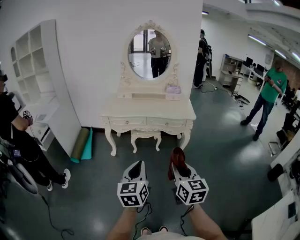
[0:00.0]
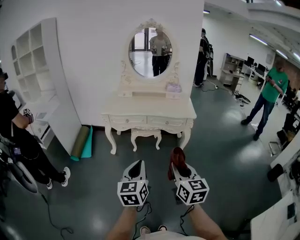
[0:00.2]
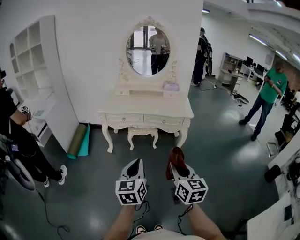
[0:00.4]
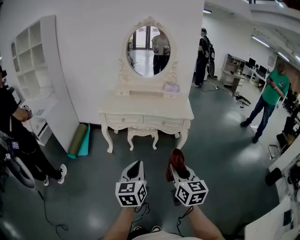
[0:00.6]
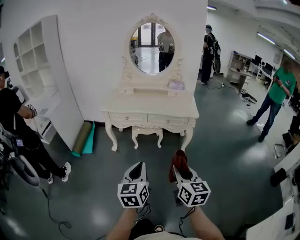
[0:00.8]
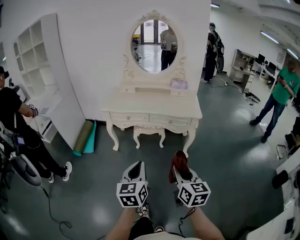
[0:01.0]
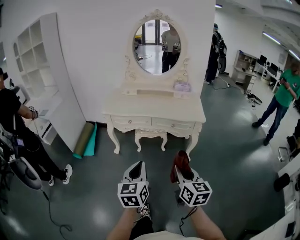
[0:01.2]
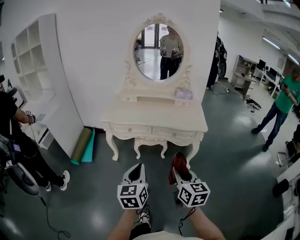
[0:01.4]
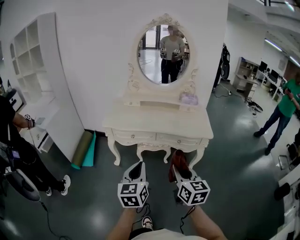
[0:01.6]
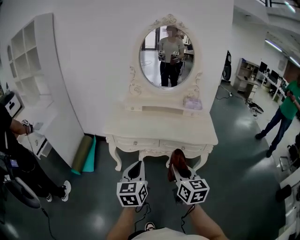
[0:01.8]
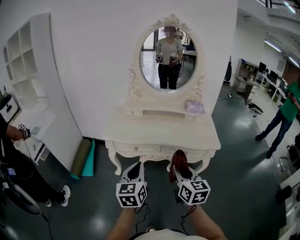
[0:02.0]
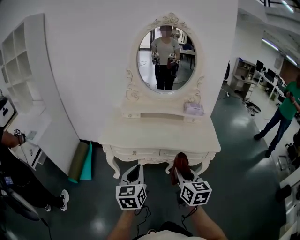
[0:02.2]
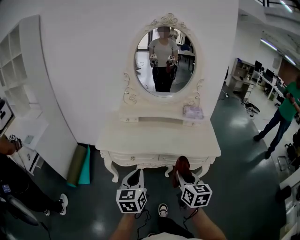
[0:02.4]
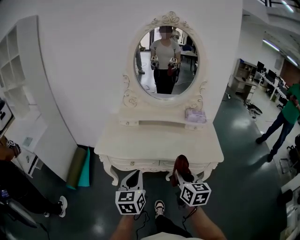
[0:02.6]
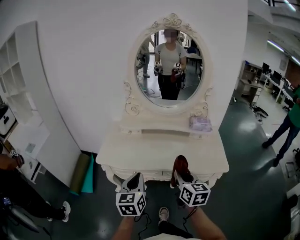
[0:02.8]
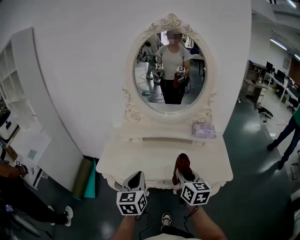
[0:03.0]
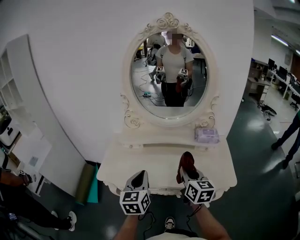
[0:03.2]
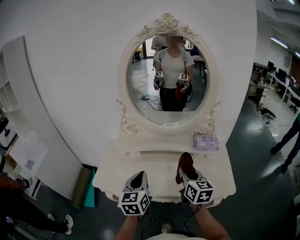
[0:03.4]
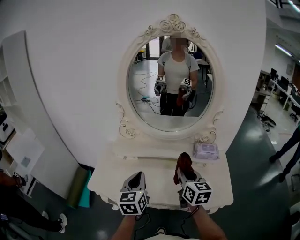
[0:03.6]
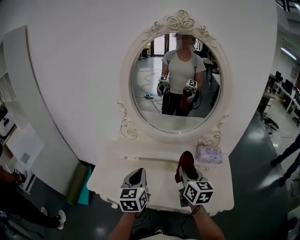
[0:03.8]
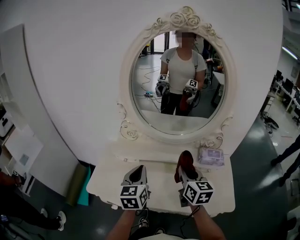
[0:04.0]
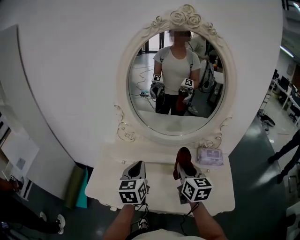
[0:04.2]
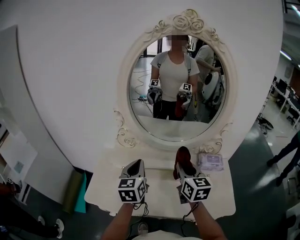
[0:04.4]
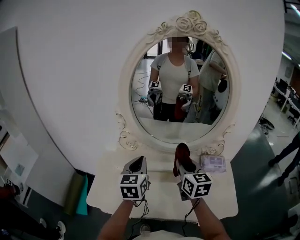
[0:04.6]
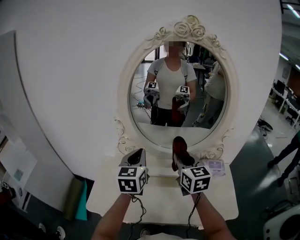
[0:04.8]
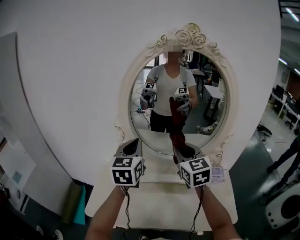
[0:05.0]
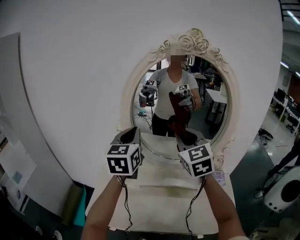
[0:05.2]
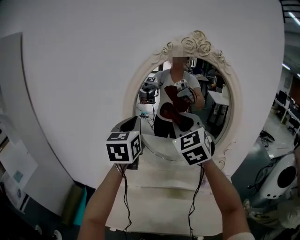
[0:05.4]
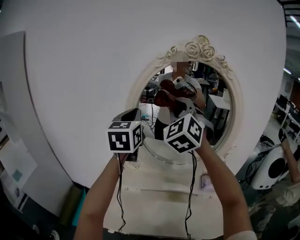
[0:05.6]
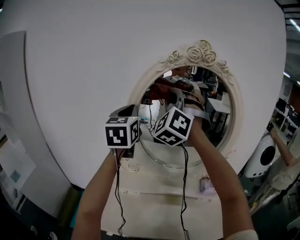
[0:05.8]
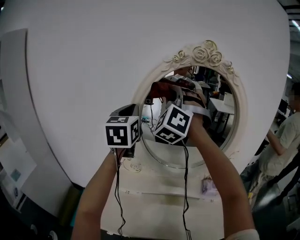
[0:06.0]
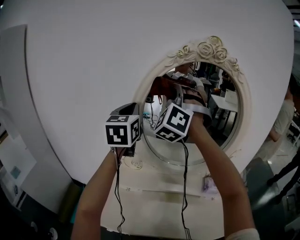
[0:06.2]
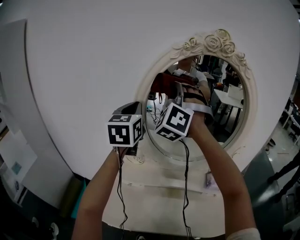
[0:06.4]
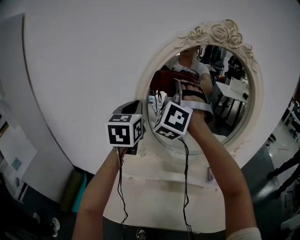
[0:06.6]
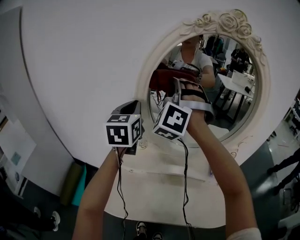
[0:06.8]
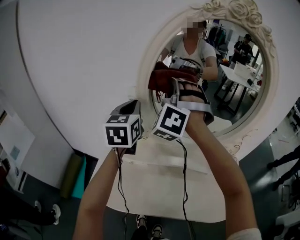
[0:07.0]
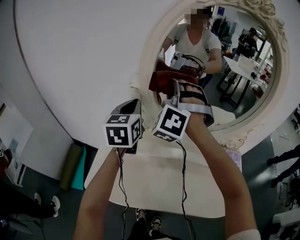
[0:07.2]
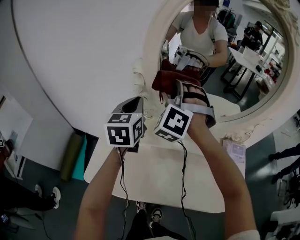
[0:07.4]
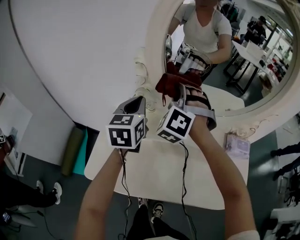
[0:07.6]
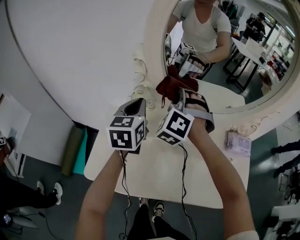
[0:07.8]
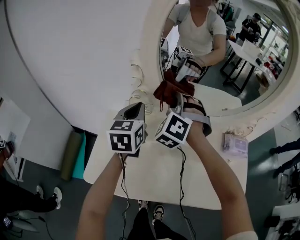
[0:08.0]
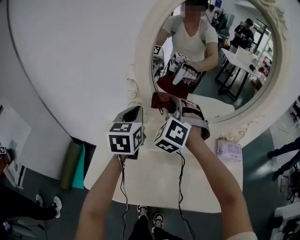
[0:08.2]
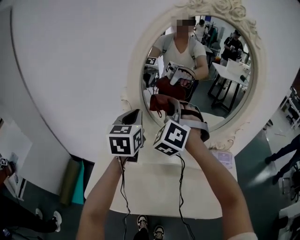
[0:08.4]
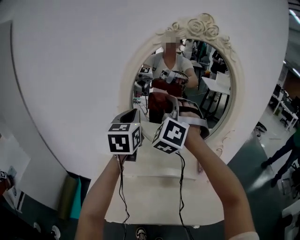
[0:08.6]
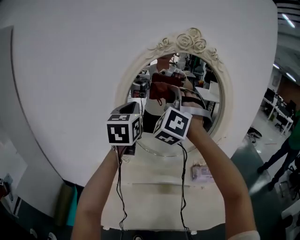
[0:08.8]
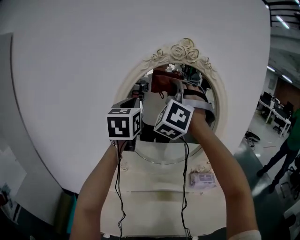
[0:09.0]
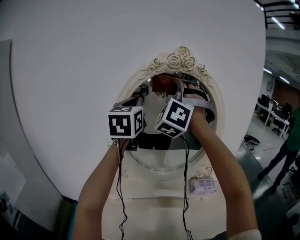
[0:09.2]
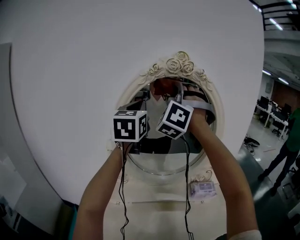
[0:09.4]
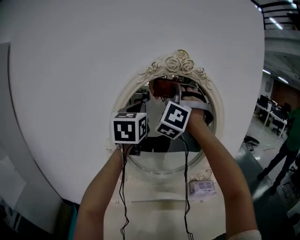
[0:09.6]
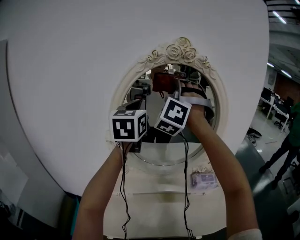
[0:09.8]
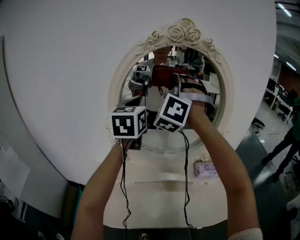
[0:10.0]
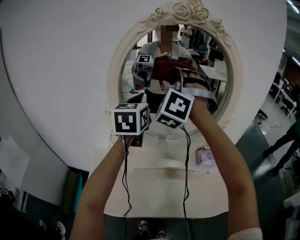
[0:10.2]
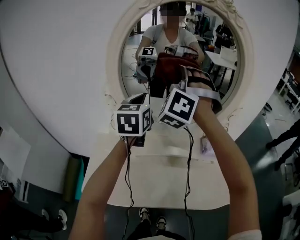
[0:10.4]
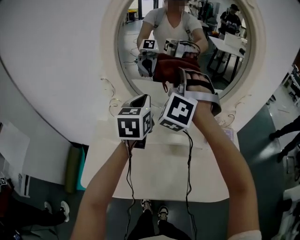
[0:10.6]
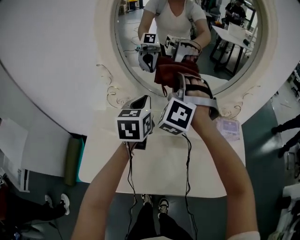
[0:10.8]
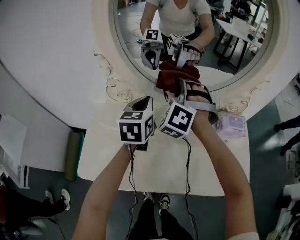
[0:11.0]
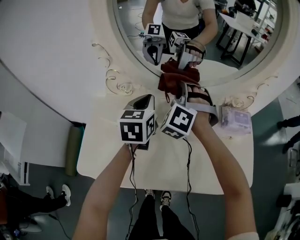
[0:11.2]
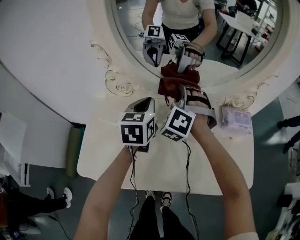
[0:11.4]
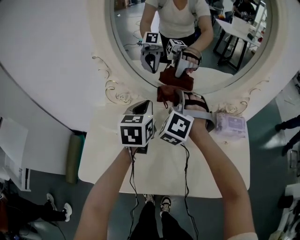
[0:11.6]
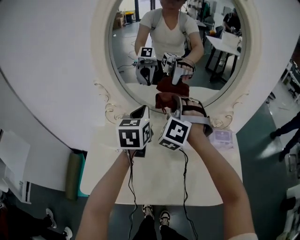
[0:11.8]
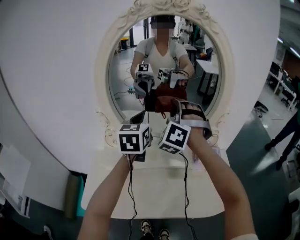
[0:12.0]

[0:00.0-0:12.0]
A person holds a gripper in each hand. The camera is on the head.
0:00.0 to 0:01.6: Both grippers move forward, approximately 25 cm.
0:01.6 to 0:03.0: Both grippers travel together forward, about 35 cm.
0:03.0 to 0:04.4: Both grippers move forward, roughly 25 cm.
0:04.4 to 0:06.0: Both grippers travel together upward and forward, approximately 35 cm. The right gripper rotates around the line of its fingers by about 80 degrees, counterclockwise from behind. Meanwhile the left gripper turns by about 20 degrees.
0:06.0 to 0:07.6: Both grippers travel together downward, about 30 cm. The right gripper turns by some 30 degrees. Meanwhile the left gripper changes its angle by roughly 20 degrees.
0:07.6 to 0:09.0: Both grippers move upward, about 35 cm. The left gripper changes its angle by some 20 degrees. The right gripper turns by roughly 30 degrees.
0:09.0 to 0:10.4: Both grippers move downward, about 20 cm.
0:10.4 to 0:12.0: The right gripper shifts some 5 cm to the right, and goes downward and returns, about 30 cm each way; the left gripper travels downward and back again, approximately 25 cm each way.

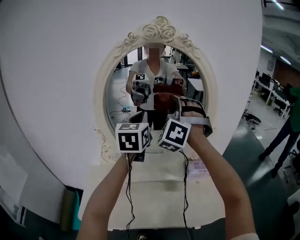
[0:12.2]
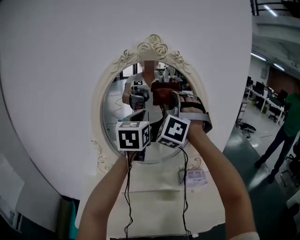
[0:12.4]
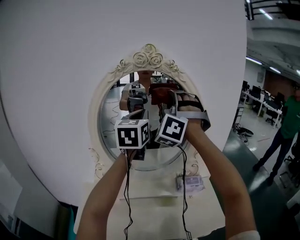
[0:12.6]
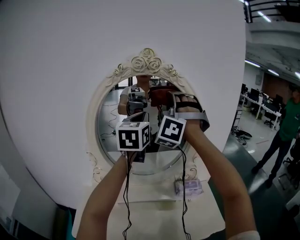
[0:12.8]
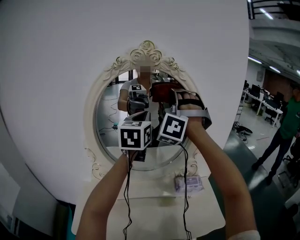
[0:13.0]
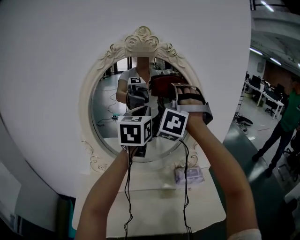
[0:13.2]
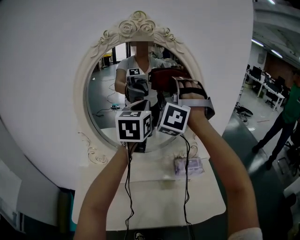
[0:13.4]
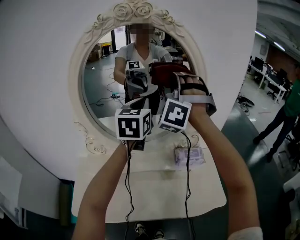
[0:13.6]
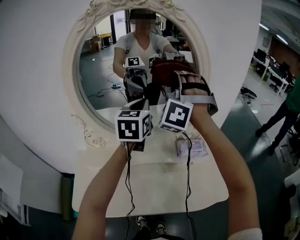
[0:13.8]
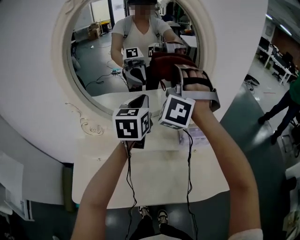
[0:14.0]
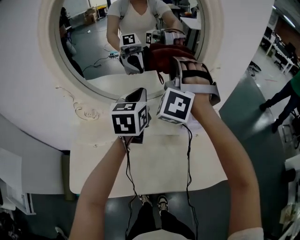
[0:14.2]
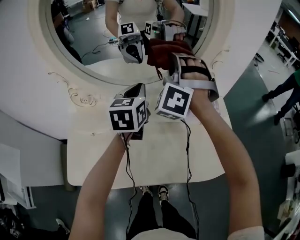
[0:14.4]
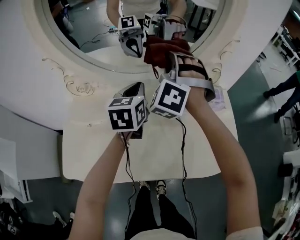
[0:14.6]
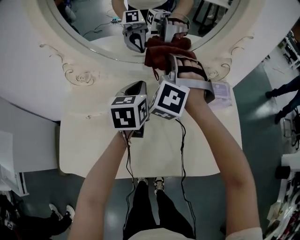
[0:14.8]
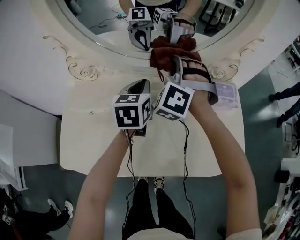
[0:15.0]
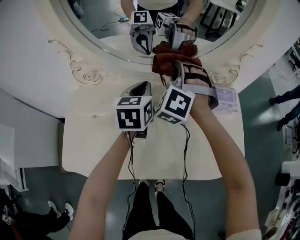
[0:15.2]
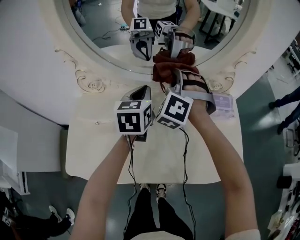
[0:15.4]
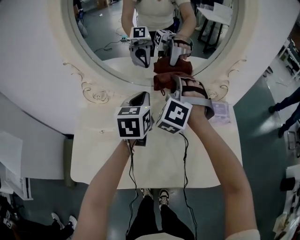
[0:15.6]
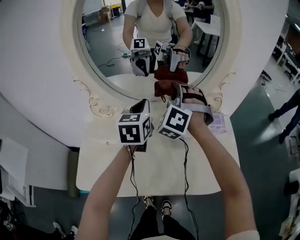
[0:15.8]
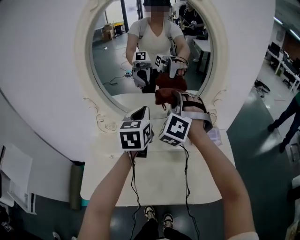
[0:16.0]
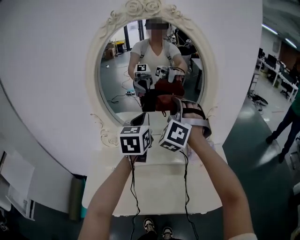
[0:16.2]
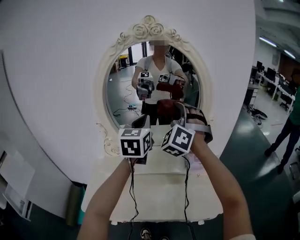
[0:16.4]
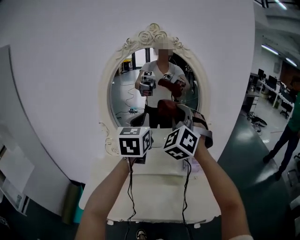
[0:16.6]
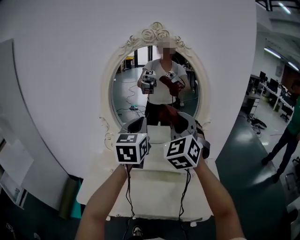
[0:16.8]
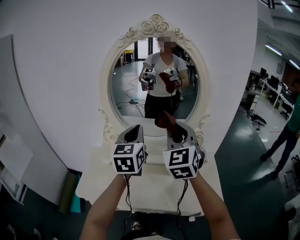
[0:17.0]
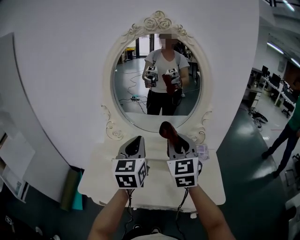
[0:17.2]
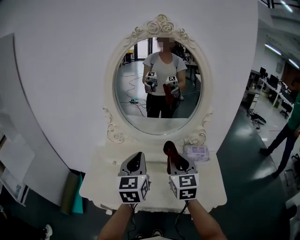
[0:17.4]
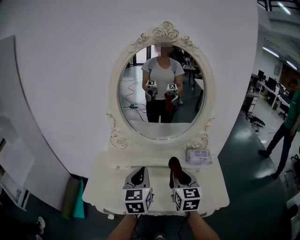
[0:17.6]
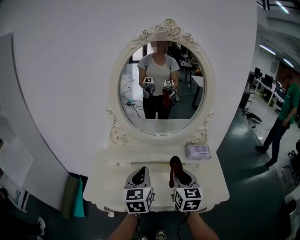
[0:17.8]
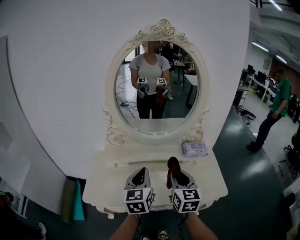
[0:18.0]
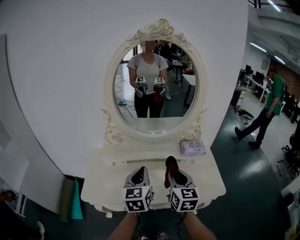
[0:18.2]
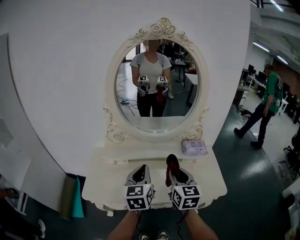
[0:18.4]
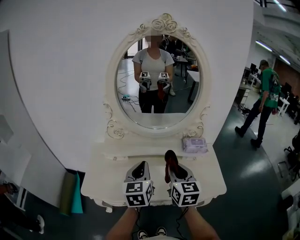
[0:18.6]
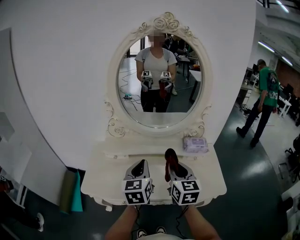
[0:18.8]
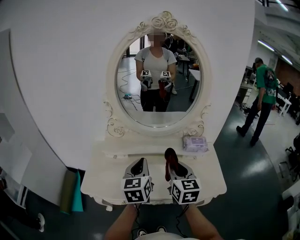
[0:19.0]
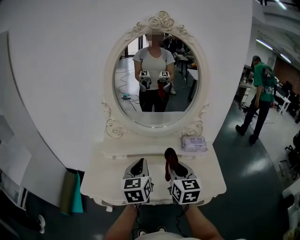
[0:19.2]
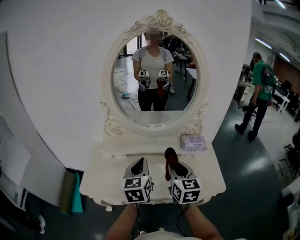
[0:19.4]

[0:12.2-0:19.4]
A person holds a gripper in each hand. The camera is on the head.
0:12.2 to 0:13.6: The left gripper travels forward by roughly 5 cm, and moves some 10 cm upward and comes back. Meanwhile the right gripper is displaced forward and upward by approximately 10 cm.
0:13.6 to 0:15.0: Both grippers move downward, roughly 35 cm. The left gripper changes its angle by some 30 degrees. The right gripper changes its angle by some 30 degrees.
0:15.0 to 0:16.6: Both grippers travel together upward, roughly 35 cm. The right gripper rotates about 30 degrees; the left gripper rotates about 30 degrees.
0:16.6 to 0:18.0: Both grippers move downward and backward, approximately 30 cm. The right gripper twists roughly 60 degrees clockwise, seen from behind.
0:18.0 to 0:19.4: The grippers make only small movements.

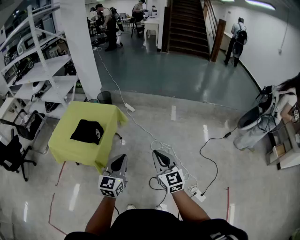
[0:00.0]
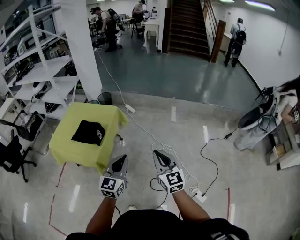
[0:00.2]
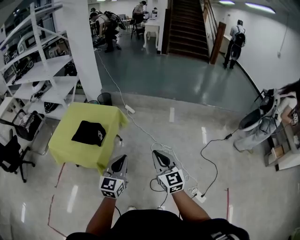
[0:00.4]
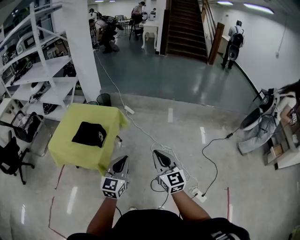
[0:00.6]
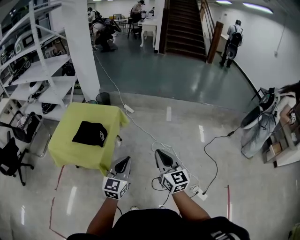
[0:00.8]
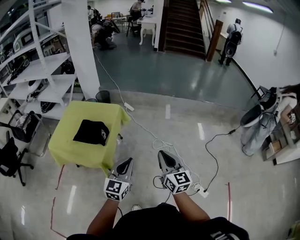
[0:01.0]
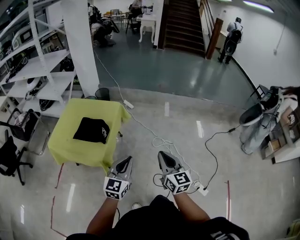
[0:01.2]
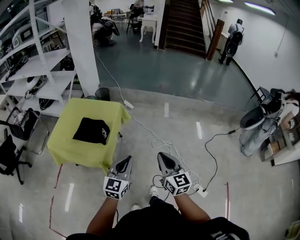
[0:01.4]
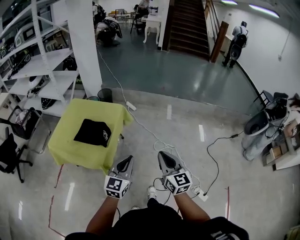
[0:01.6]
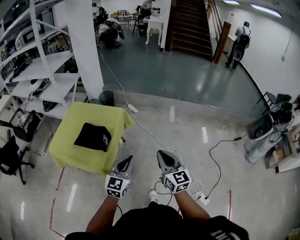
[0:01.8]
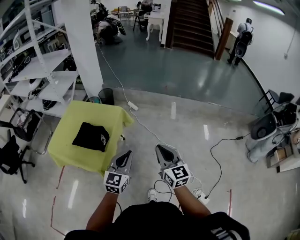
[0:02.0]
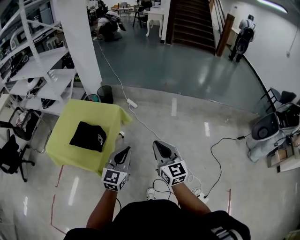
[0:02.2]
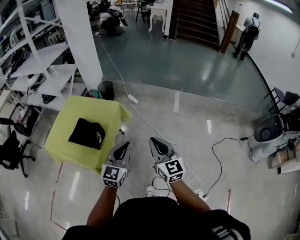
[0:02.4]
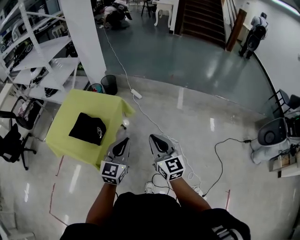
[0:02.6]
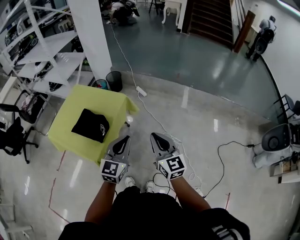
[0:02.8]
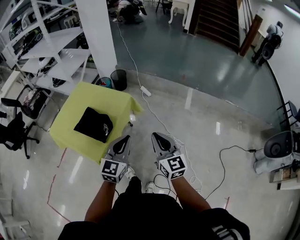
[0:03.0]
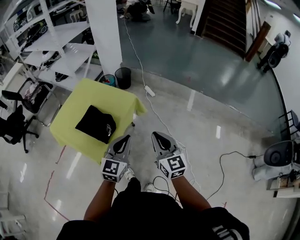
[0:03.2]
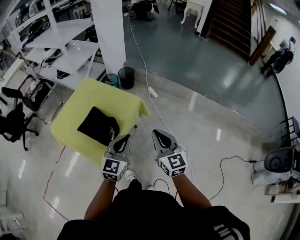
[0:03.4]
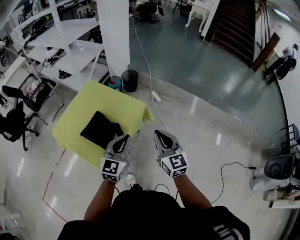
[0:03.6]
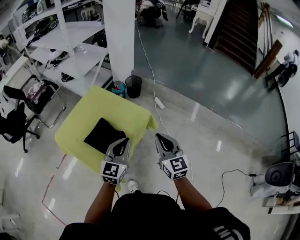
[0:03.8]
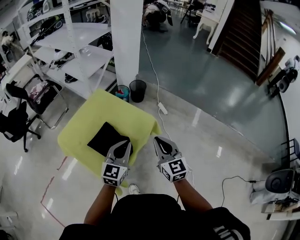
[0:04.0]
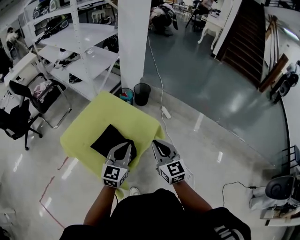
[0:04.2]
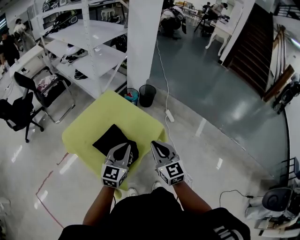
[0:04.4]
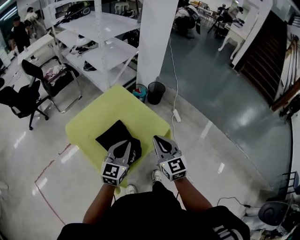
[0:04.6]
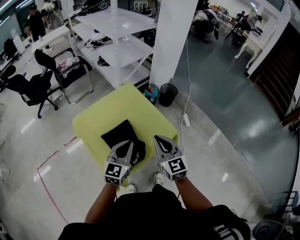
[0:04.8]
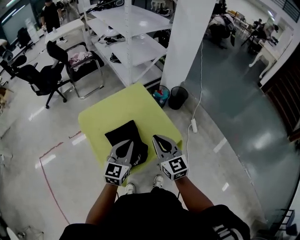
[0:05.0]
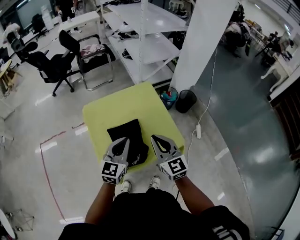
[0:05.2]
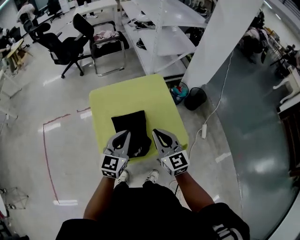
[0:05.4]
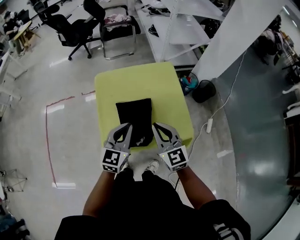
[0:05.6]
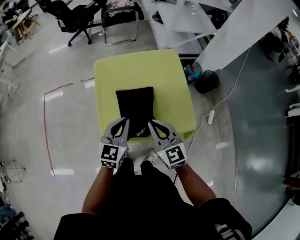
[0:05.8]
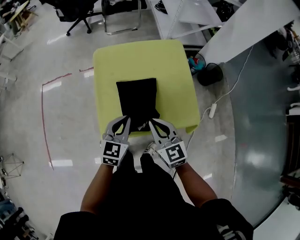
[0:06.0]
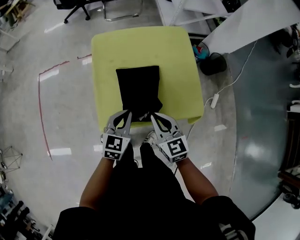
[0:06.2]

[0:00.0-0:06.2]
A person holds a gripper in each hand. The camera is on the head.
0:00.0 to 0:01.6: The two grippers go some 10 cm to the left.
0:01.6 to 0:03.2: The two grippers go some 20 cm forward.
0:03.2 to 0:04.6: Both grippers move forward and to the left, some 30 cm. The right gripper turns by approximately 20 degrees.
0:04.6 to 0:06.2: Both grippers move downward, approximately 15 cm. The left gripper rotates approximately 40 degrees. Meanwhile the right gripper changes its angle by approximately 40 degrees.
